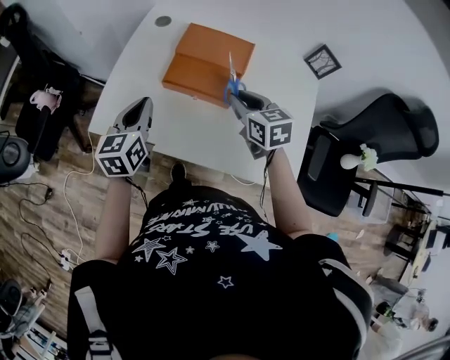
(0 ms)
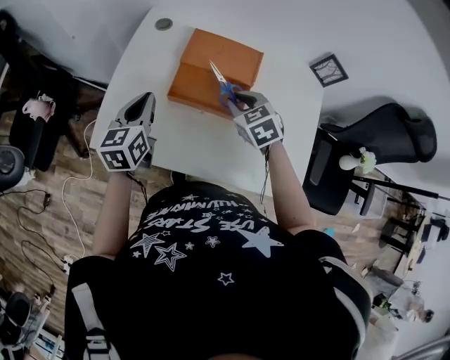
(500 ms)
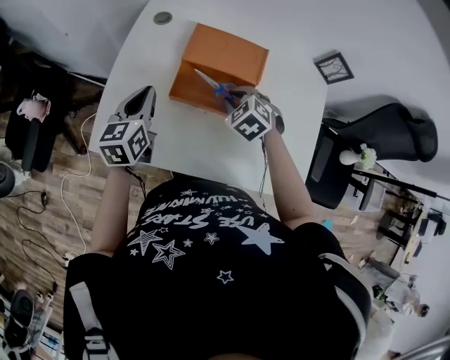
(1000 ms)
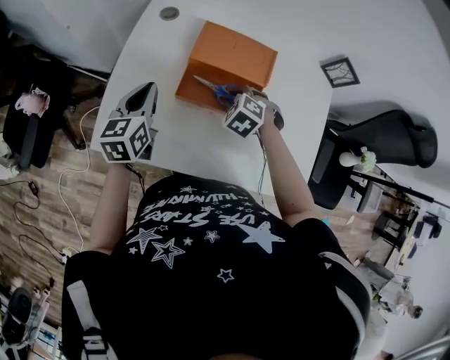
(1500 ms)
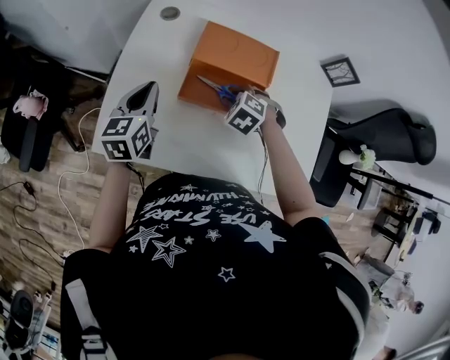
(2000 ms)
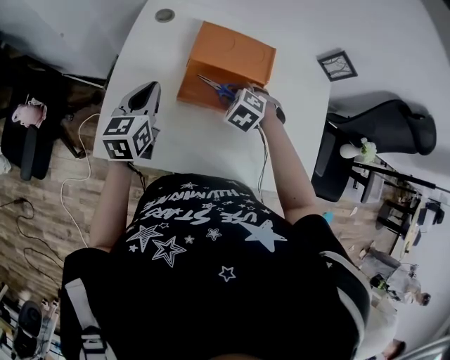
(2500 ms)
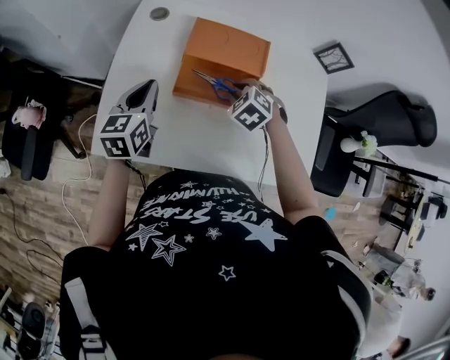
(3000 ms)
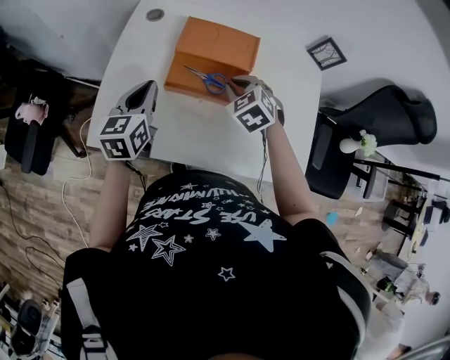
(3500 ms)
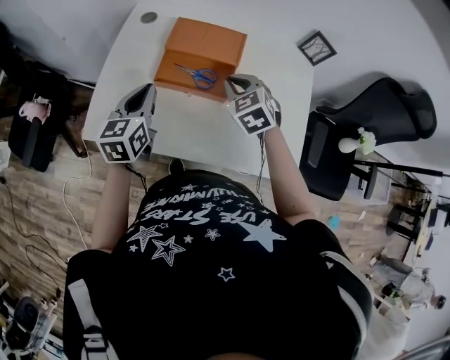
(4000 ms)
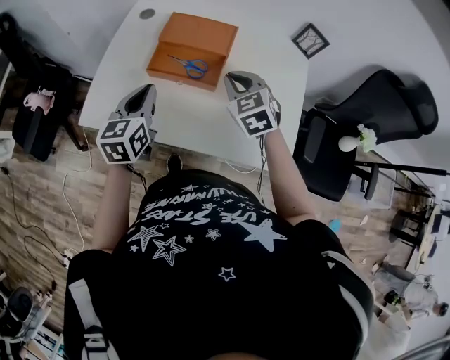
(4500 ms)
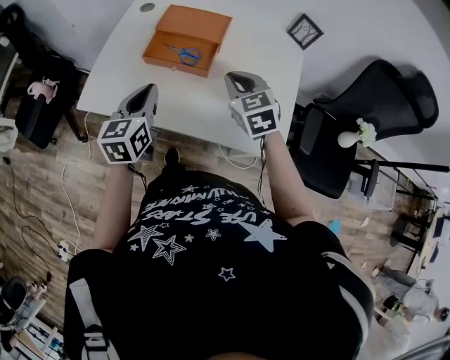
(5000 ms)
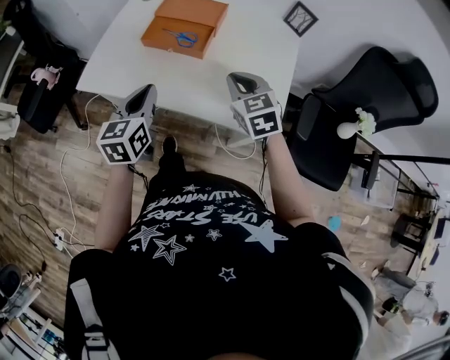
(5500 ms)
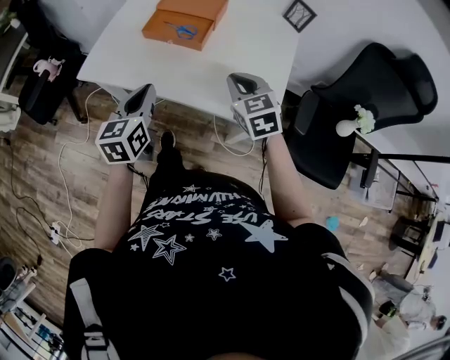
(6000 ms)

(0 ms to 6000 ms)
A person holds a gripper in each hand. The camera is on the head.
0 ms - 2000 ms: The right gripper is displaced downward, forward and to the left by some 20 cm, and tilts its fingers roughly 40 degrees downward; the left gripper moves forward, to the left and downward, some 15 cm.
2000 ms - 4000 ms: The right gripper moves upward, to the right and backward, approximately 15 cm, and changes its angle by some 40 degrees, while the left gripper travels to the right, backward and upward by approximately 15 cm.
4000 ms - 6000 ms: The right gripper moves backward and to the right, roughly 30 cm; the left gripper is displaced backward by roughly 30 cm.

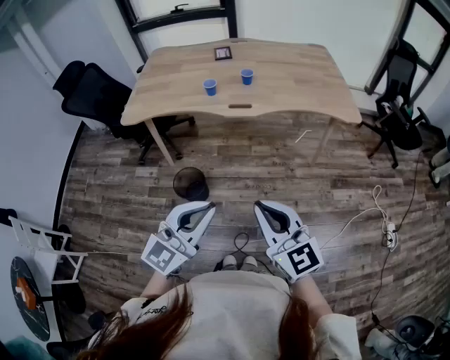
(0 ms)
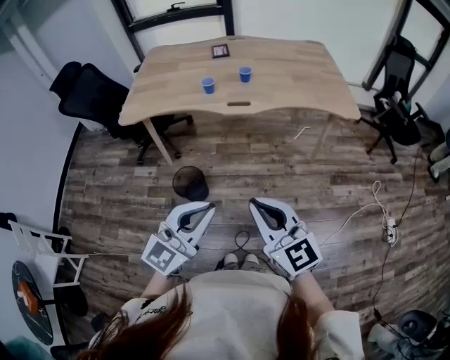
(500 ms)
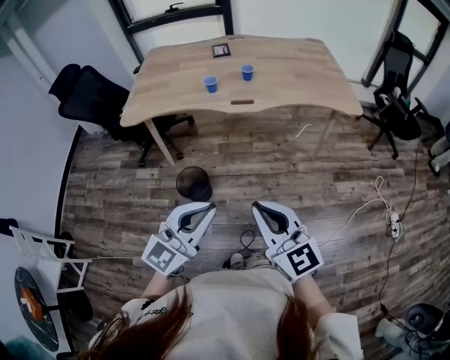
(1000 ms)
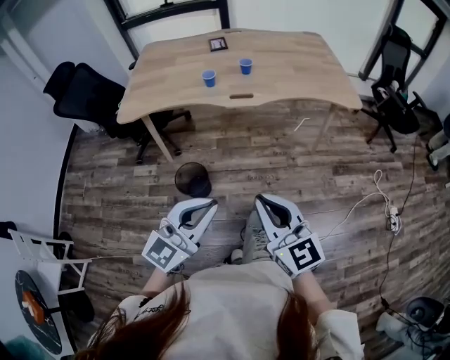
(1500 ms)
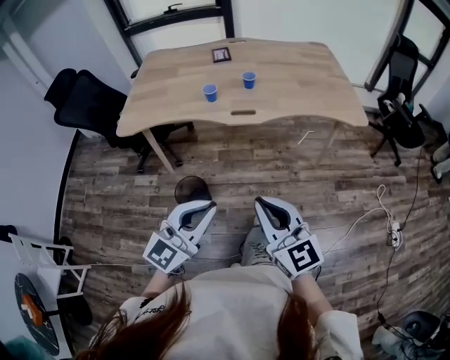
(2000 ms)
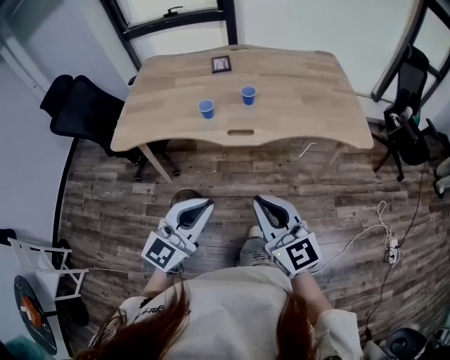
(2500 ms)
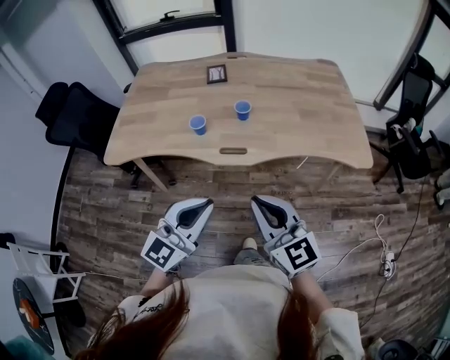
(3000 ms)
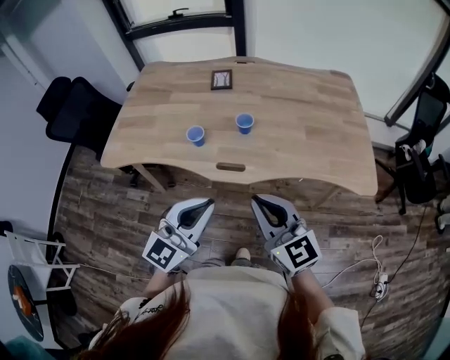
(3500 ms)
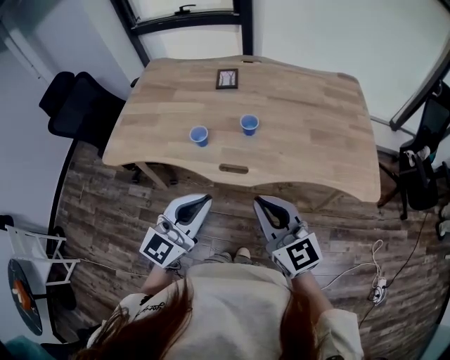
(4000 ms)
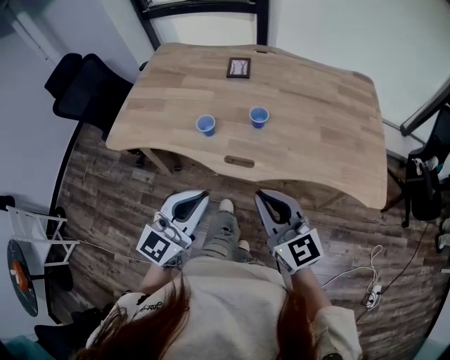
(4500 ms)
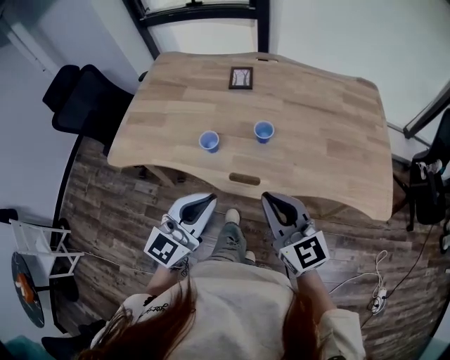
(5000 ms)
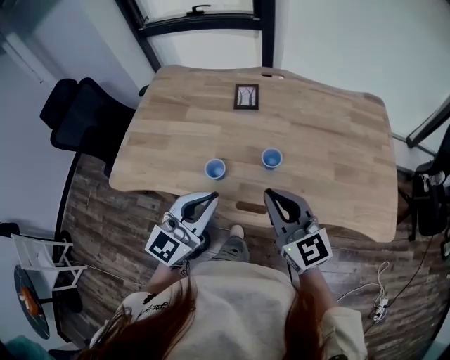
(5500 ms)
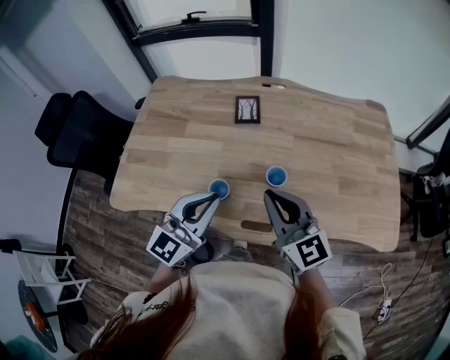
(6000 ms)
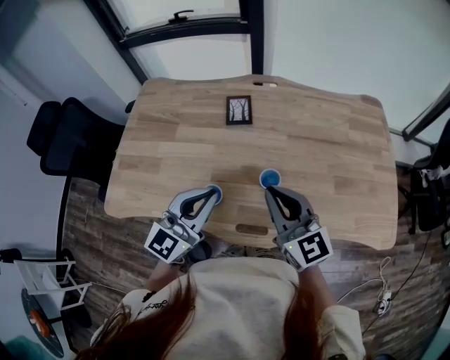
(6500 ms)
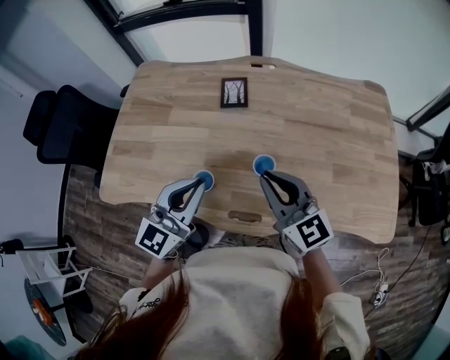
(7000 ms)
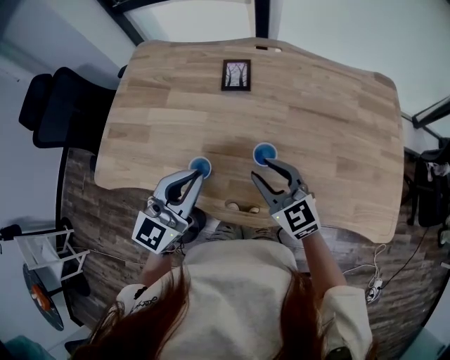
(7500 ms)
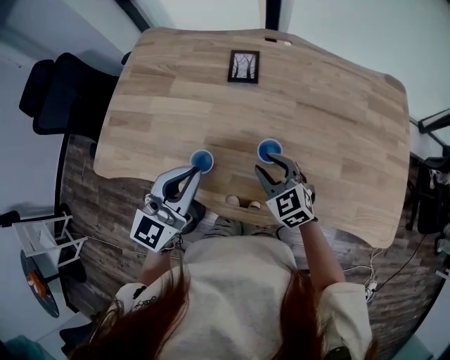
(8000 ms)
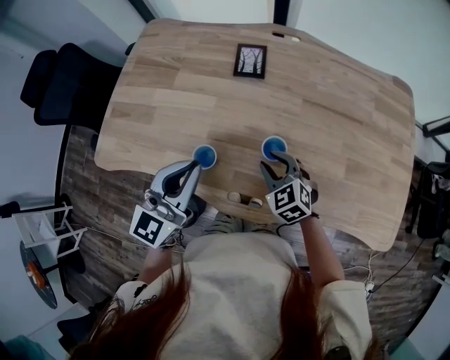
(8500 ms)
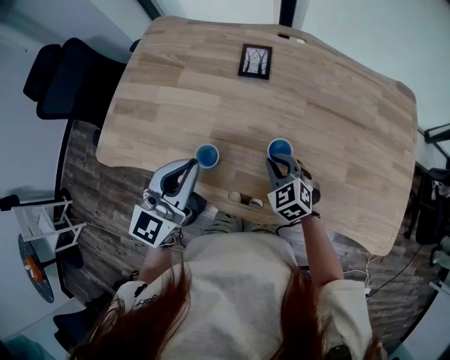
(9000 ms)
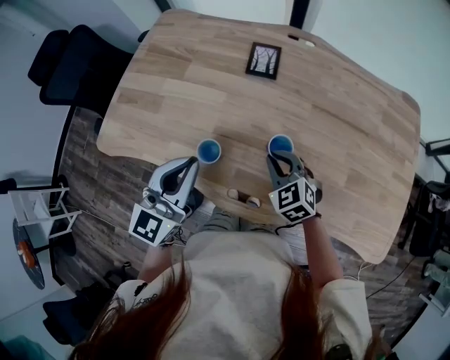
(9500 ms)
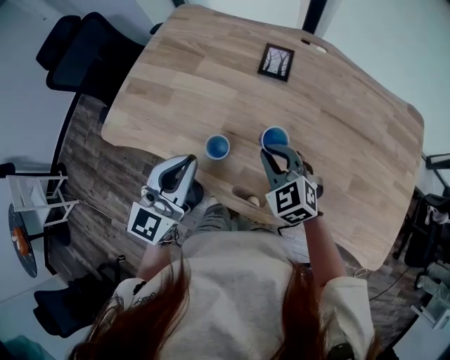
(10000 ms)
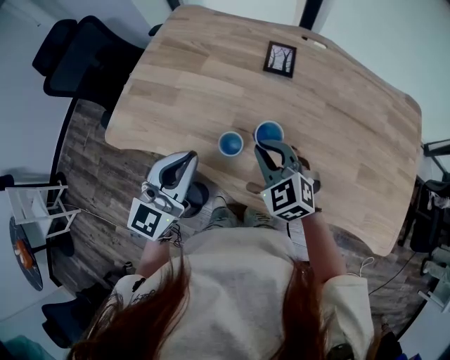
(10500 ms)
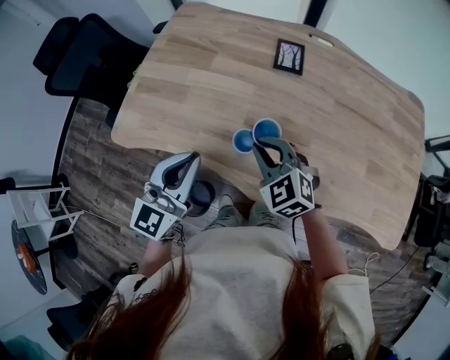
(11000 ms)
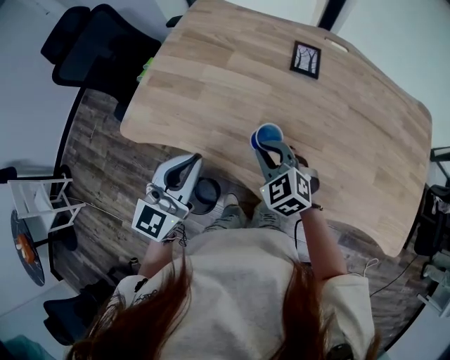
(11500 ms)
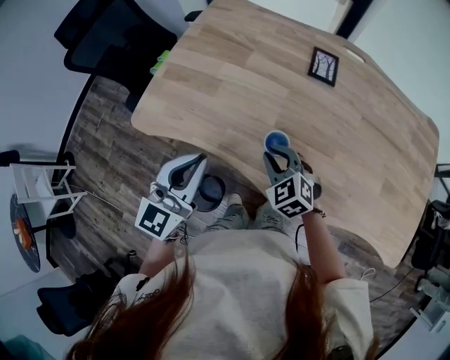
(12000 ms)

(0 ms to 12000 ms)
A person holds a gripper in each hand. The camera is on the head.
0 ms - 2000 ms: The two grippers go some 5 cm forward.
2000 ms - 4000 ms: Both grippers travel together forward, about 30 cm.
4000 ms - 6000 ms: Both grippers move forward, some 25 cm.
6000 ms - 8000 ms: The right gripper is displaced downward by roughly 20 cm, angles its fingers downward, by approximately 30 degrees, and opens; the left gripper ends up some 5 cm from where it was.
8000 ms - 10000 ms: The right gripper changes place by some 5 cm. Meanwhile the left gripper is displaced to the left by some 5 cm.
10000 ms - 12000 ms: Both grippers travel together to the left, about 15 cm.

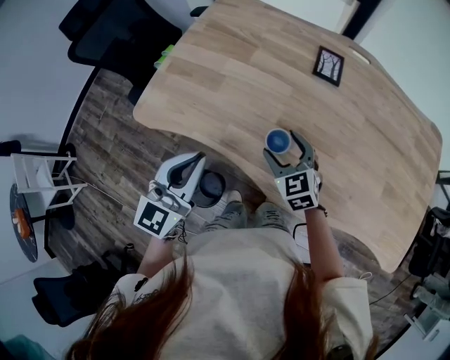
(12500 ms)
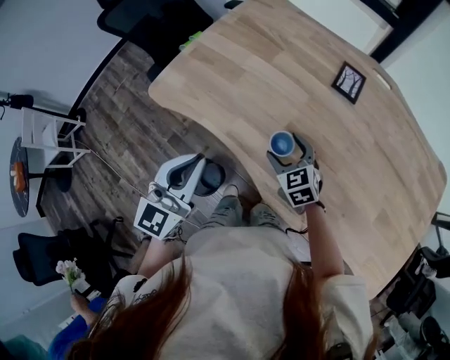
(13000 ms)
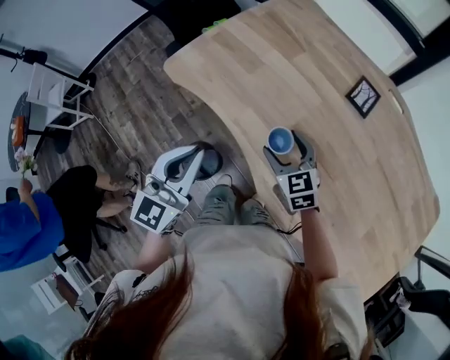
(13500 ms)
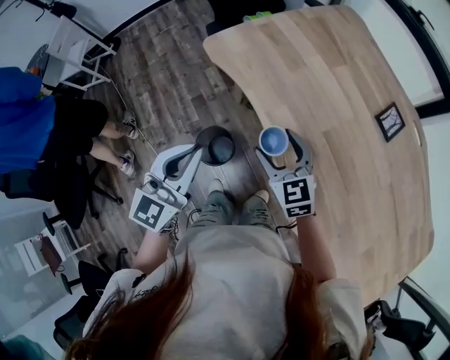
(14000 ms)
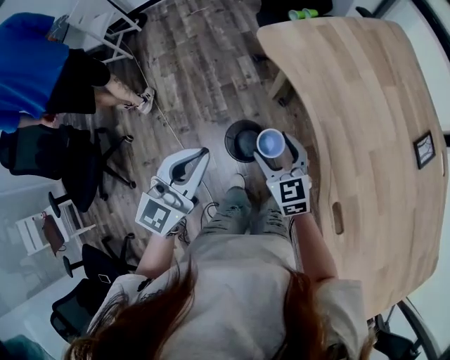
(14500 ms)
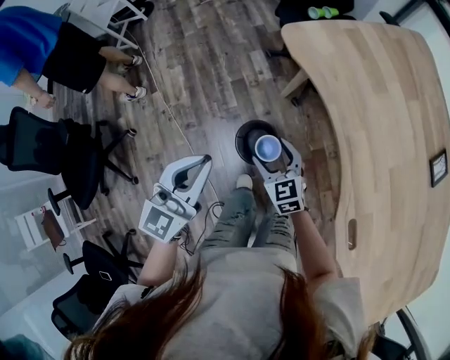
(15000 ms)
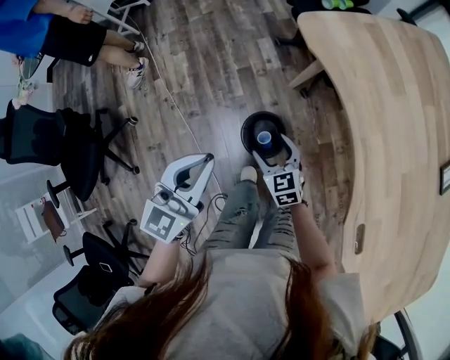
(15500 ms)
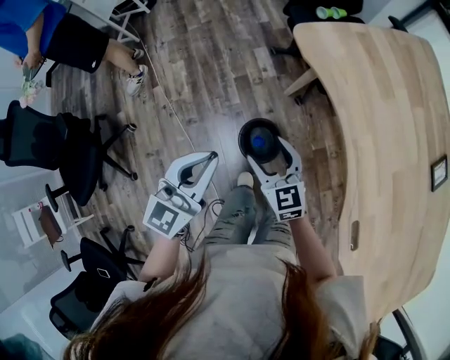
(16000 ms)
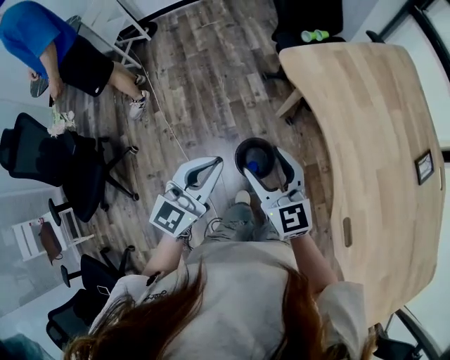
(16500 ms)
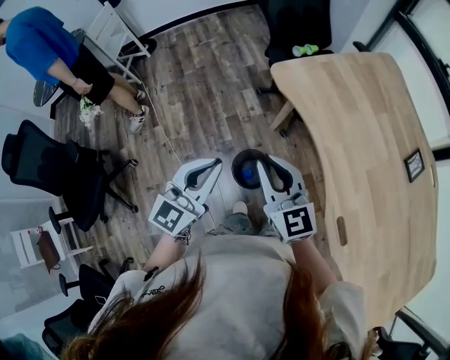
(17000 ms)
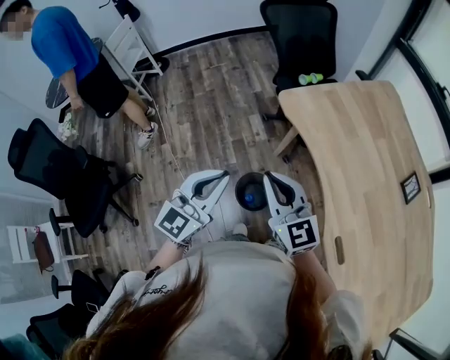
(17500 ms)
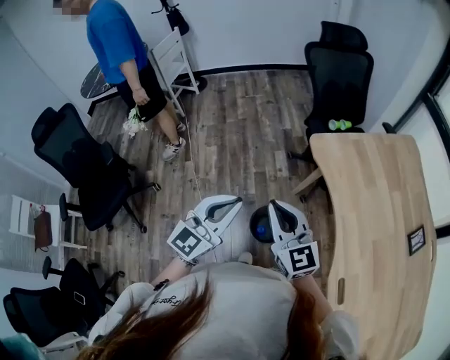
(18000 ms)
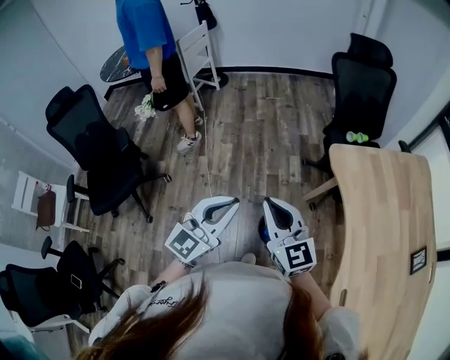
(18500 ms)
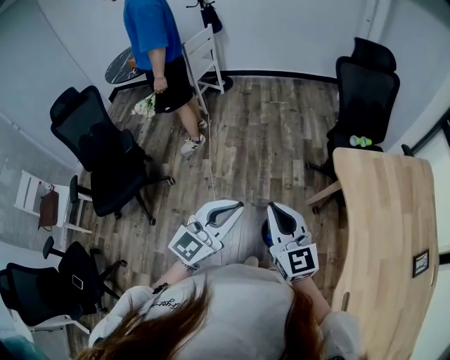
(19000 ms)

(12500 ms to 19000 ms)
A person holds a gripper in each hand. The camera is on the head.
12500 ms - 14500 ms: The right gripper moves up and down over roughly 5 cm, changing direction 2 times, and rotates approximately 40 degrees. The left gripper ends up approximately 25 cm from where it was, and turns by approximately 40 degrees.
14500 ms - 17000 ms: The right gripper goes approximately 15 cm upward and to the left, and closes up. The left gripper moves about 10 cm downward and comes back.
17000 ms - 19000 ms: Both grippers move to the left, about 15 cm. The right gripper turns by some 20 degrees.

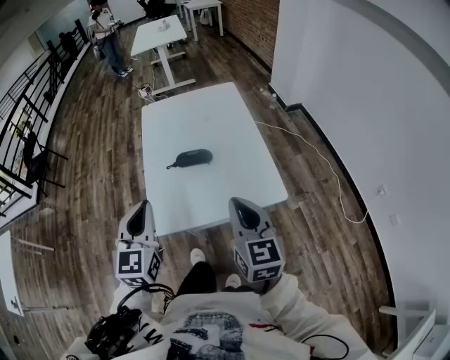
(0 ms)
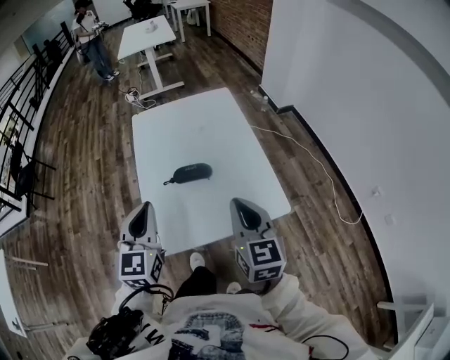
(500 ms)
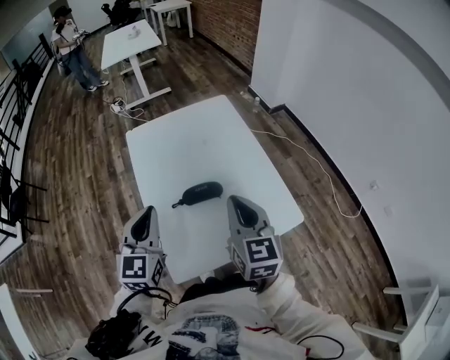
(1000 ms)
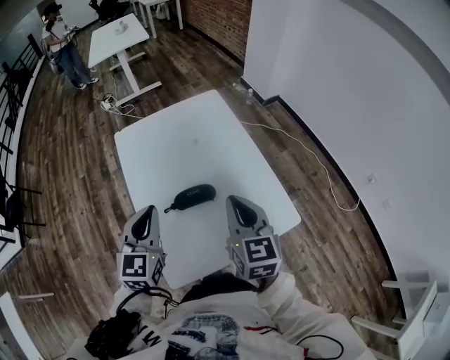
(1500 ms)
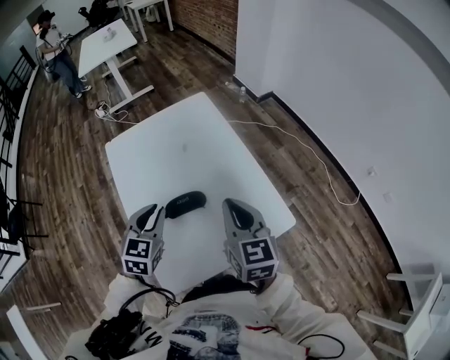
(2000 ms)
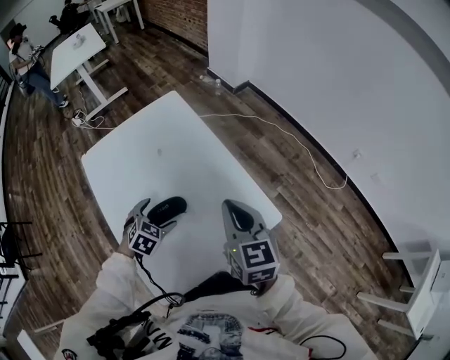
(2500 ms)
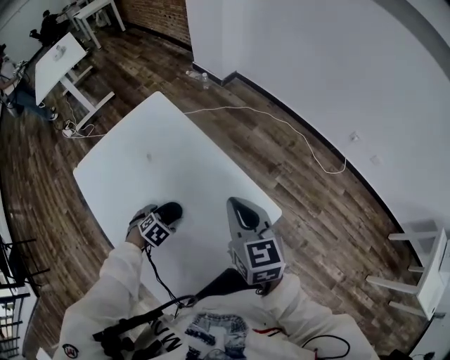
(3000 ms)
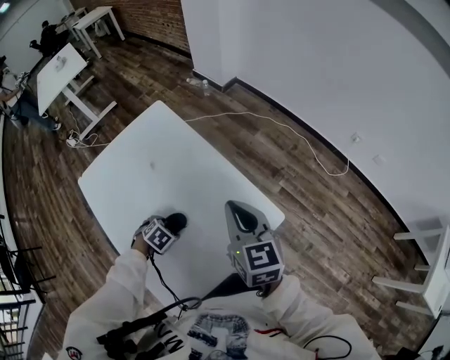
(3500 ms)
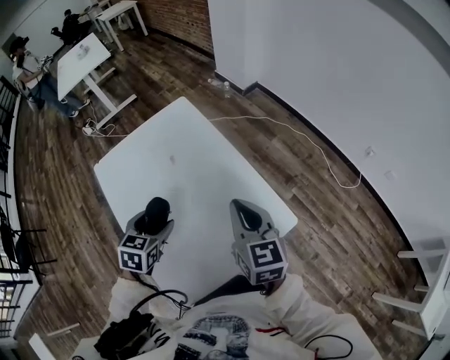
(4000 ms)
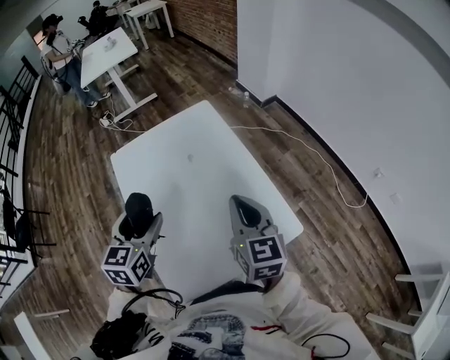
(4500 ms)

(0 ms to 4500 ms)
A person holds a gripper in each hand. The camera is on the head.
0 ms - 2000 ms: The right gripper goes roughly 20 cm forward. Meanwhile the left gripper heads forward and downward, covering about 30 cm, and changes its angle by some 30 degrees.
2000 ms - 4500 ms: The left gripper travels downward and back again, about 25 cm each way, and opens up.
